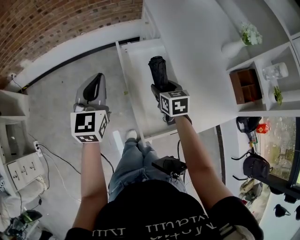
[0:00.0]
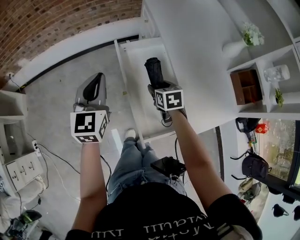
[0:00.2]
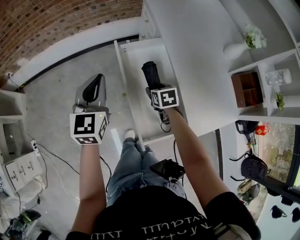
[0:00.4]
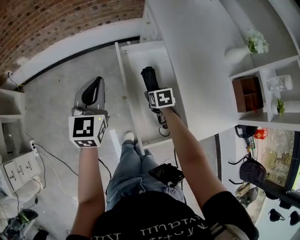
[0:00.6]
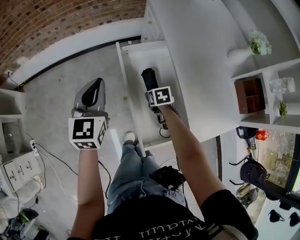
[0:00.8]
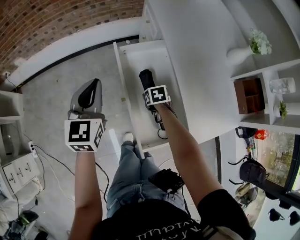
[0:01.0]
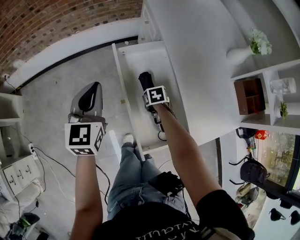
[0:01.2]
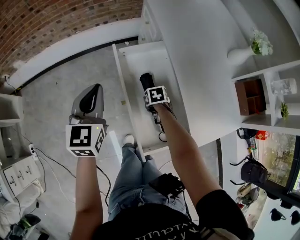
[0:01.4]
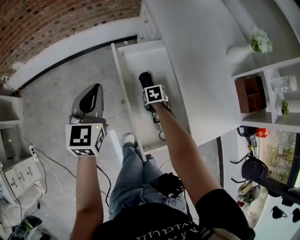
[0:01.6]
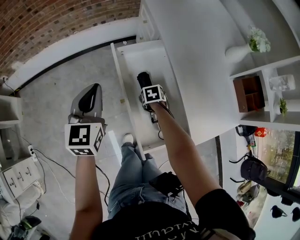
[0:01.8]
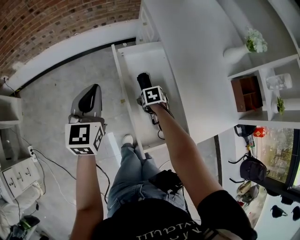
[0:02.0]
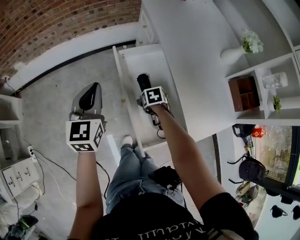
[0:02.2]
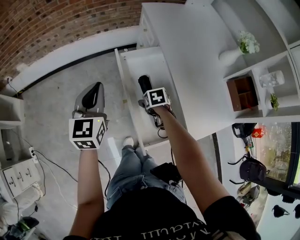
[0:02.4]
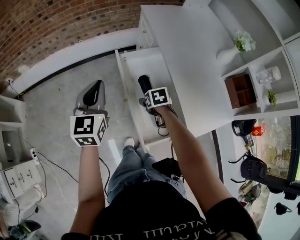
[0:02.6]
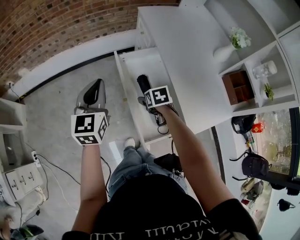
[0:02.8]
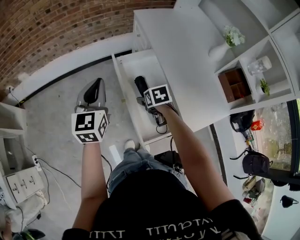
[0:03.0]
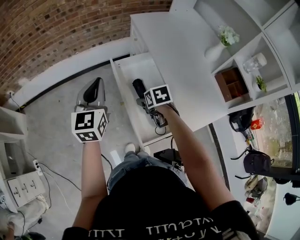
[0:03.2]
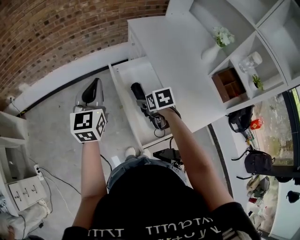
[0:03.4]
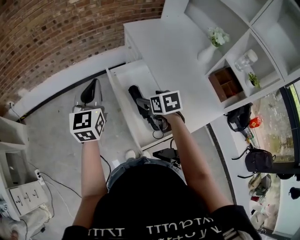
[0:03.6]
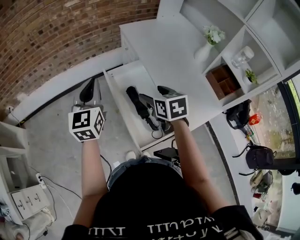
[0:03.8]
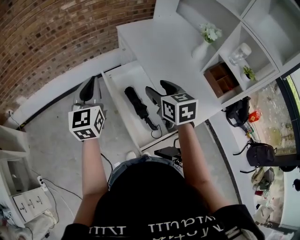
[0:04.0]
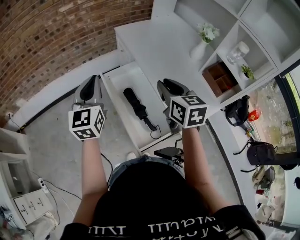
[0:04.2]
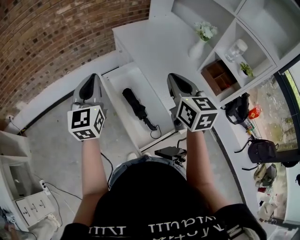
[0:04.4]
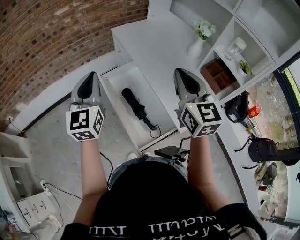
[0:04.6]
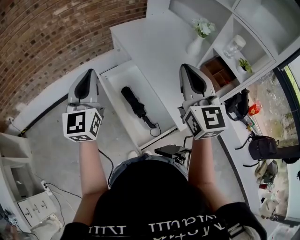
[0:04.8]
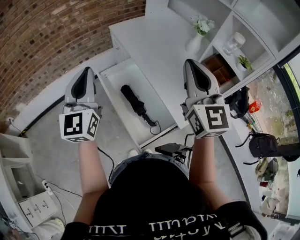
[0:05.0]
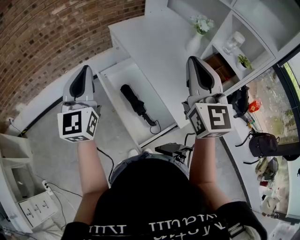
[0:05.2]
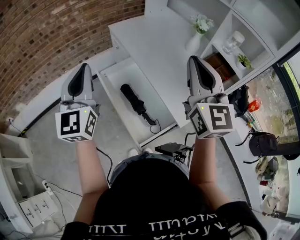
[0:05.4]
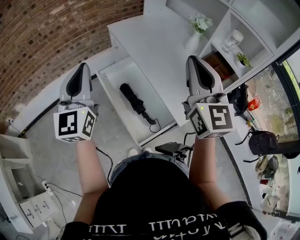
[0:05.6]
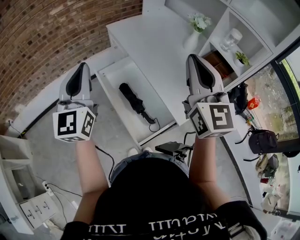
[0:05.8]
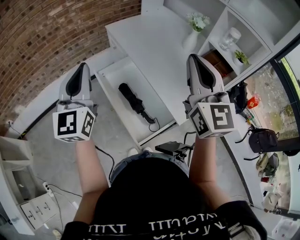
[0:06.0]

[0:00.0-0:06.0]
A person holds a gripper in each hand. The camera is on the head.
0:00.0 to 0:01.6: The right gripper shifts some 20 cm downward, and points its fingers approximately 30 degrees further downward. The left gripper moves downward, approximately 5 cm.
0:01.6 to 0:03.0: The left gripper is displaced upward by some 5 cm; the right gripper heads upward, covering about 15 cm, and opens up.
0:03.0 to 0:04.4: The right gripper is displaced upward by about 30 cm, tips its fingers upward by about 50 degrees, and closes up. The left gripper travels upward and to the right by roughly 10 cm.
0:04.4 to 0:06.0: The right gripper shifts approximately 15 cm upward and backward, and swivels about 30 degrees. Meanwhile the left gripper travels upward by about 5 cm.

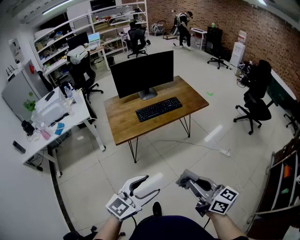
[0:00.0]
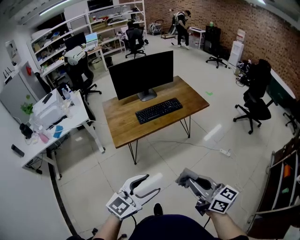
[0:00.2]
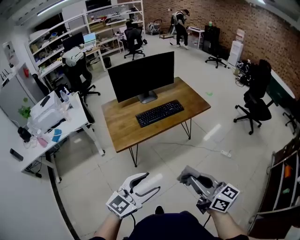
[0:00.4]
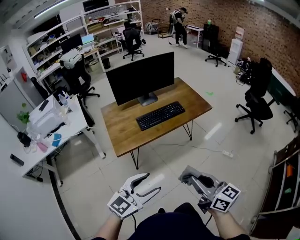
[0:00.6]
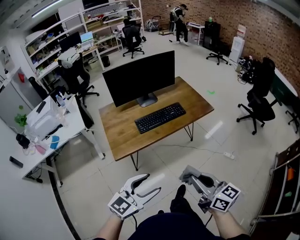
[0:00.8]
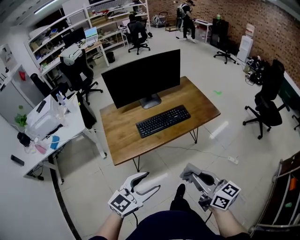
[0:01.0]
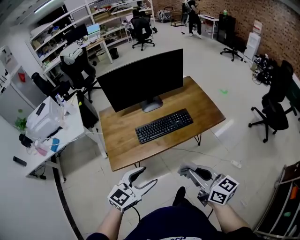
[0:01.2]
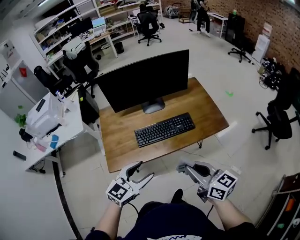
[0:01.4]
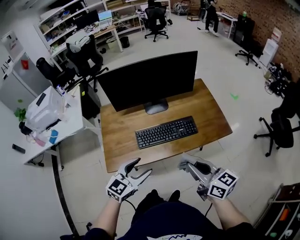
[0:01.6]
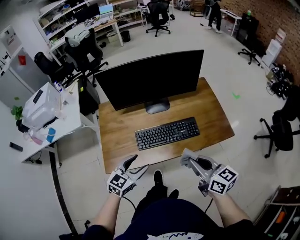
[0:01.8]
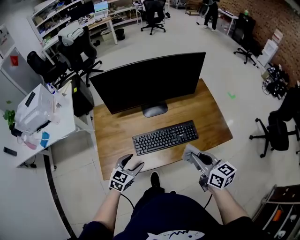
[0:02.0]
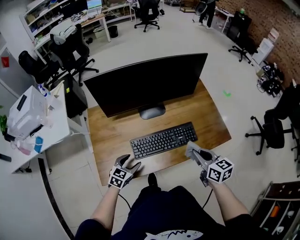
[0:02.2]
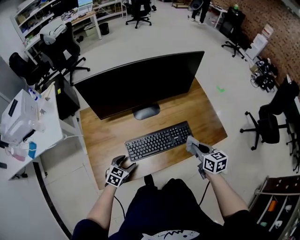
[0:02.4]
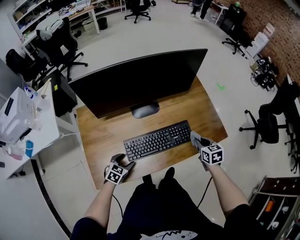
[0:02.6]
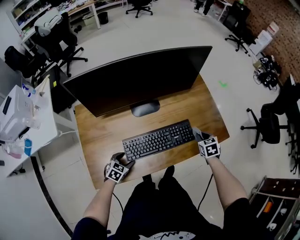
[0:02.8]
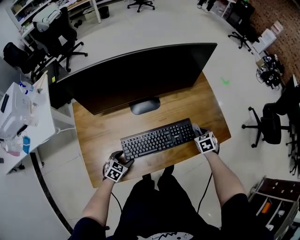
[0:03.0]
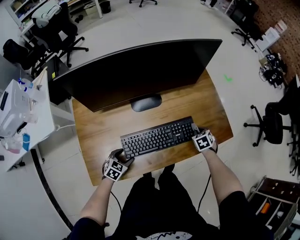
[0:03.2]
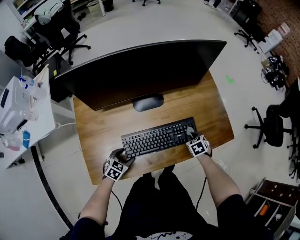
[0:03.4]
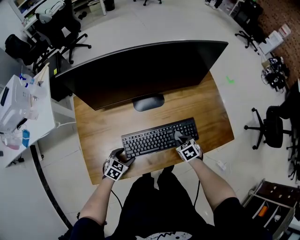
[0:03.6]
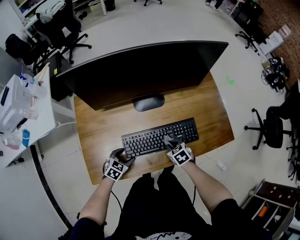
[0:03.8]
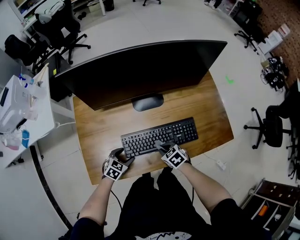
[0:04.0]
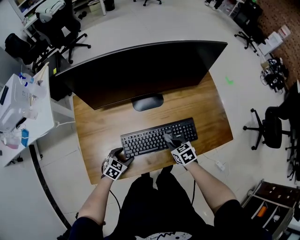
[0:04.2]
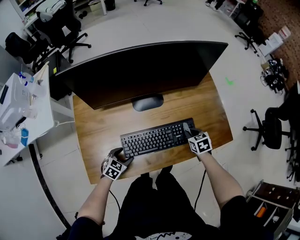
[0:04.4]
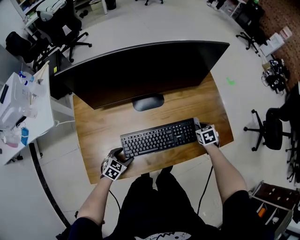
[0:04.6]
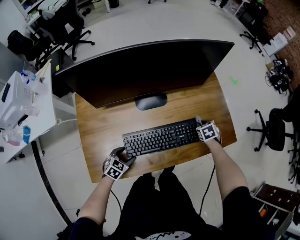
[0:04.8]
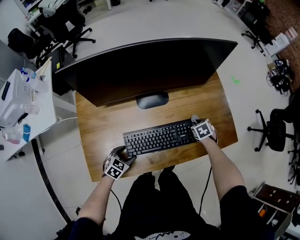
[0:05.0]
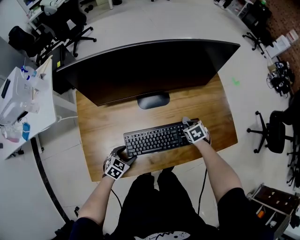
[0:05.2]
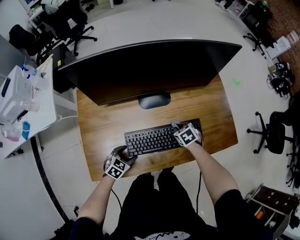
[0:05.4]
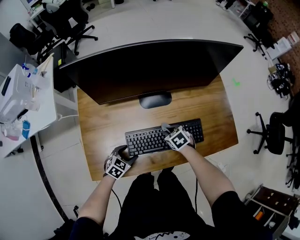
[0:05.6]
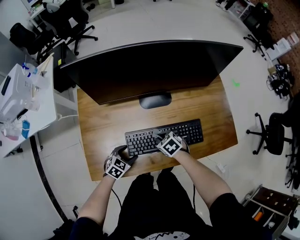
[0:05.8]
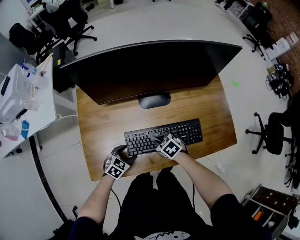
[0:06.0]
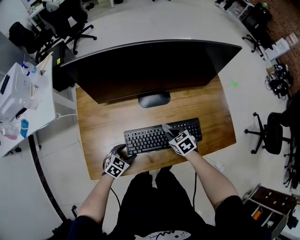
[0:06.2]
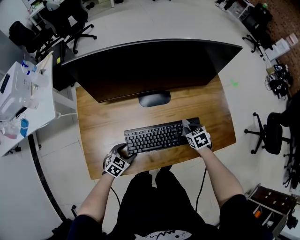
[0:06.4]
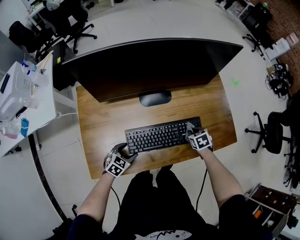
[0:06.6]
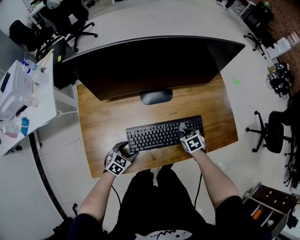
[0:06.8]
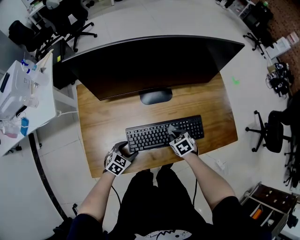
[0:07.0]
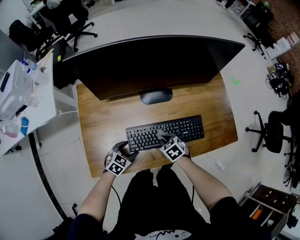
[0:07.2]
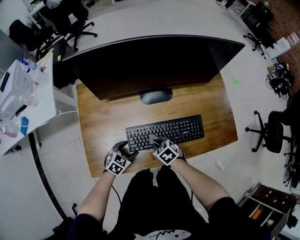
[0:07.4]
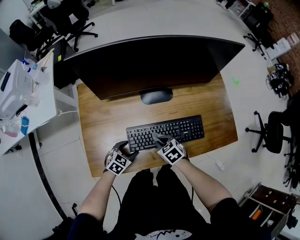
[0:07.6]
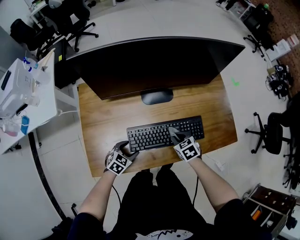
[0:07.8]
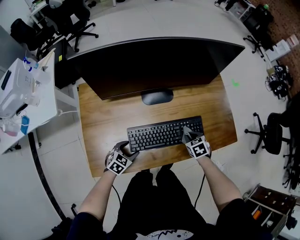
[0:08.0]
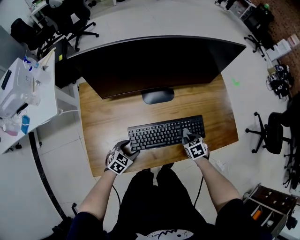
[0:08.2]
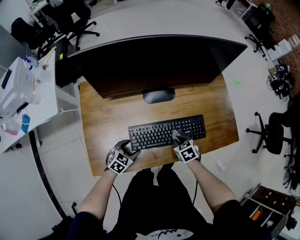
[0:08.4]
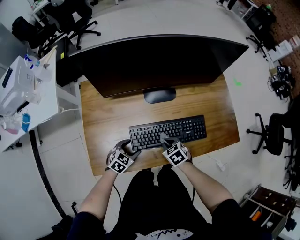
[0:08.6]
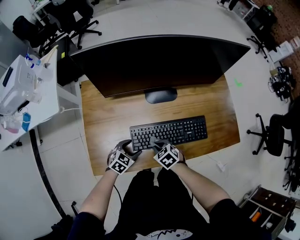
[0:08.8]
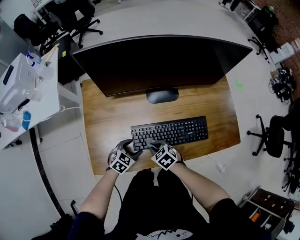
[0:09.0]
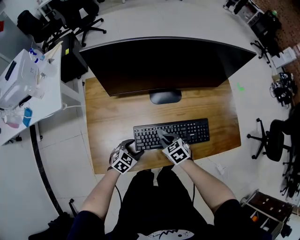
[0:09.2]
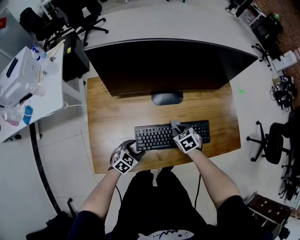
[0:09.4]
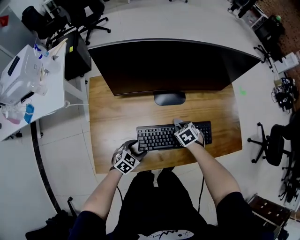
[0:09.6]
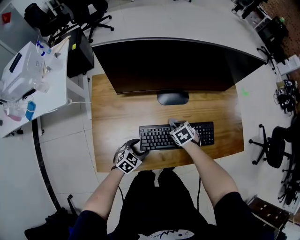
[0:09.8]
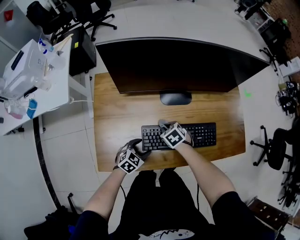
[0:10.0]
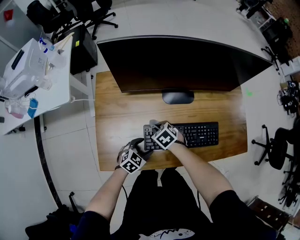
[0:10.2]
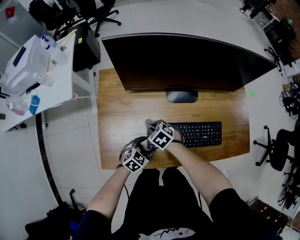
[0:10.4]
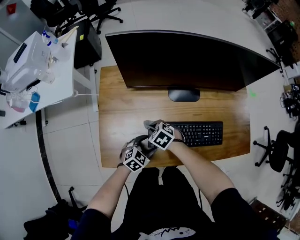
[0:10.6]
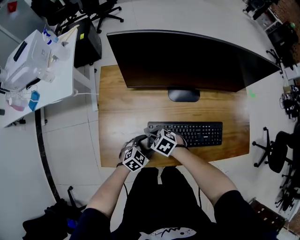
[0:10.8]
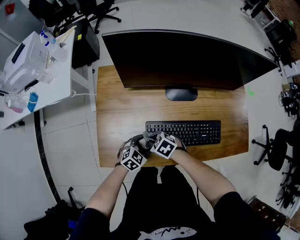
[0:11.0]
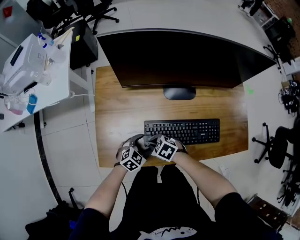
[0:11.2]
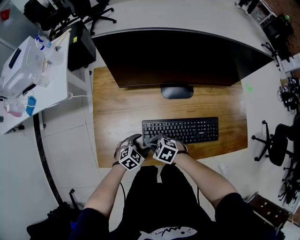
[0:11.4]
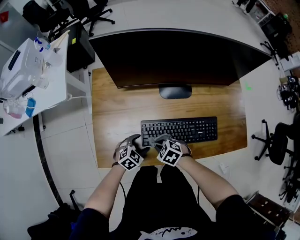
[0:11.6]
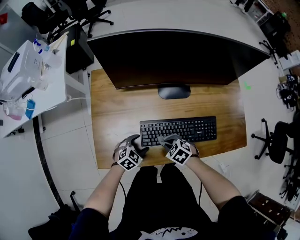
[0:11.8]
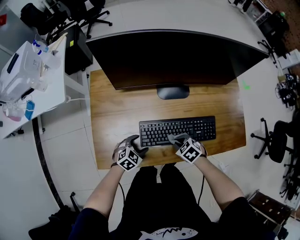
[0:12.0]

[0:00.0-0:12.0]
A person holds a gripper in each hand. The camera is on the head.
0:00.0 to 0:01.6: Both grippers are carried forward, about 50 cm. The left gripper swivels roughly 20 degrees.
0:01.6 to 0:03.0: The left gripper moves downward, about 30 cm, and angles its fingers downward, by approximately 30 degrees; the right gripper shifts by about 50 cm, and angles its fingers downward, by approximately 50 degrees.
0:04.4 to 0:06.0: The right gripper shifts by about 20 cm, and turns by approximately 30 degrees.
0:06.0 to 0:07.6: The right gripper reaches approximately 20 cm to the right, then returns.
0:07.6 to 0:09.0: The right gripper moves roughly 15 cm to the right and comes back.
0:09.0 to 0:10.4: The right gripper goes some 10 cm forward and to the left.
0:10.4 to 0:12.0: The right gripper moves roughly 20 cm.

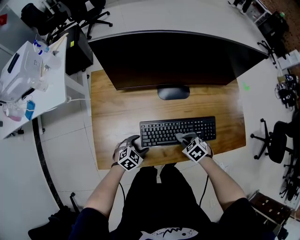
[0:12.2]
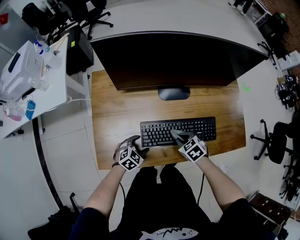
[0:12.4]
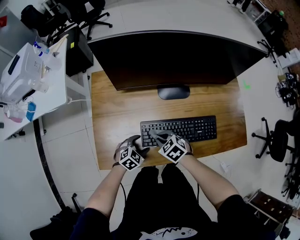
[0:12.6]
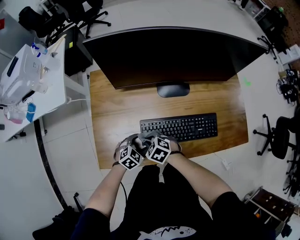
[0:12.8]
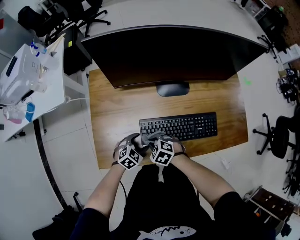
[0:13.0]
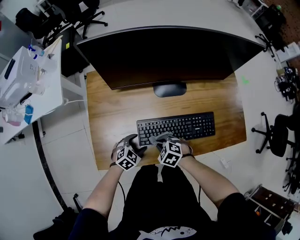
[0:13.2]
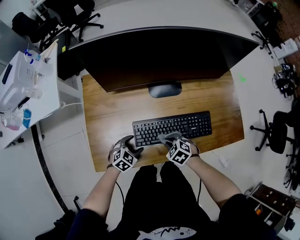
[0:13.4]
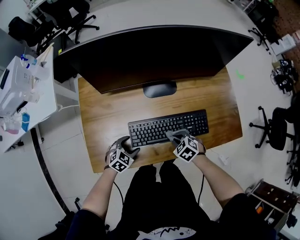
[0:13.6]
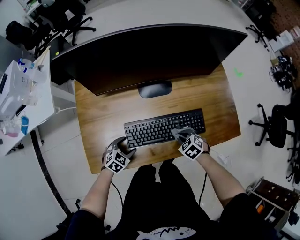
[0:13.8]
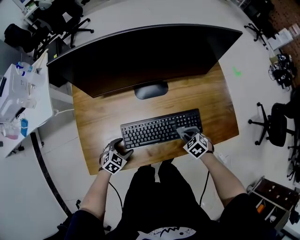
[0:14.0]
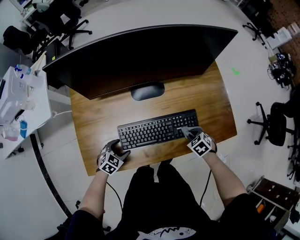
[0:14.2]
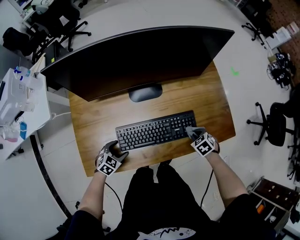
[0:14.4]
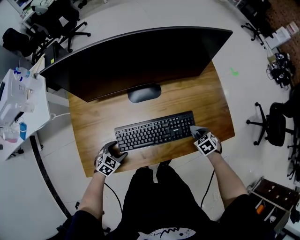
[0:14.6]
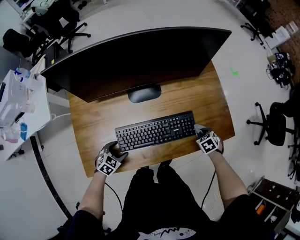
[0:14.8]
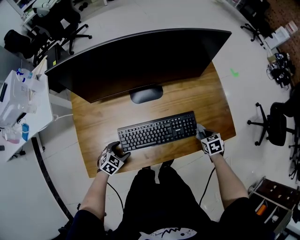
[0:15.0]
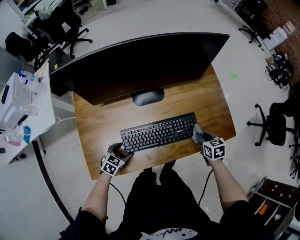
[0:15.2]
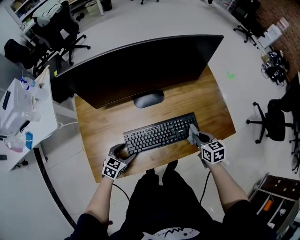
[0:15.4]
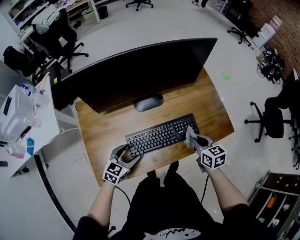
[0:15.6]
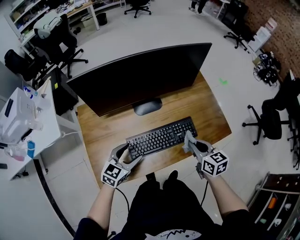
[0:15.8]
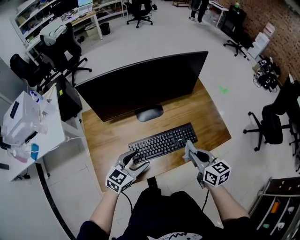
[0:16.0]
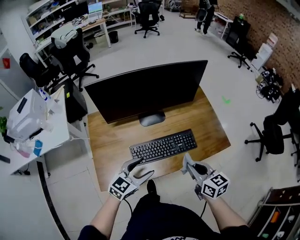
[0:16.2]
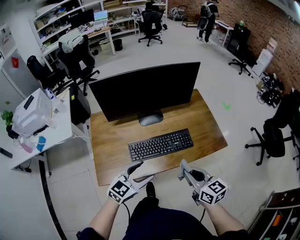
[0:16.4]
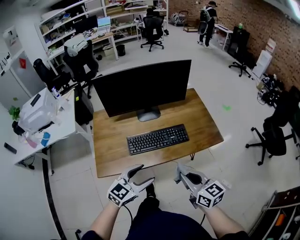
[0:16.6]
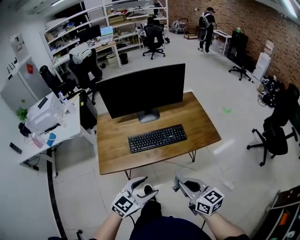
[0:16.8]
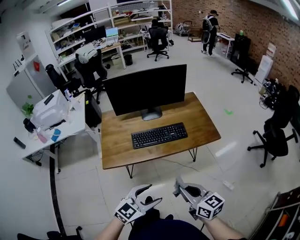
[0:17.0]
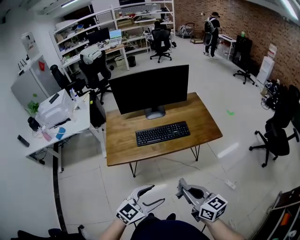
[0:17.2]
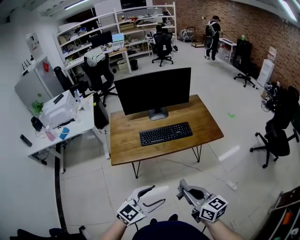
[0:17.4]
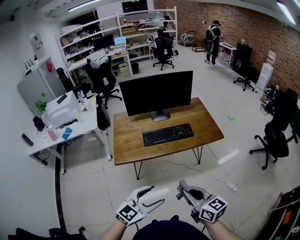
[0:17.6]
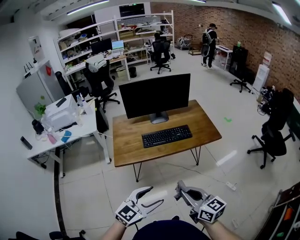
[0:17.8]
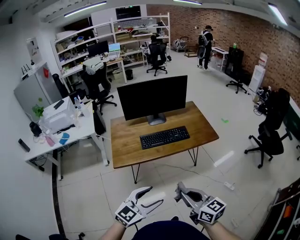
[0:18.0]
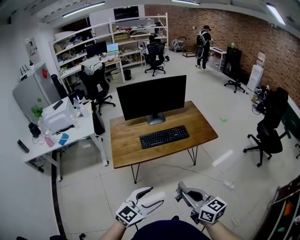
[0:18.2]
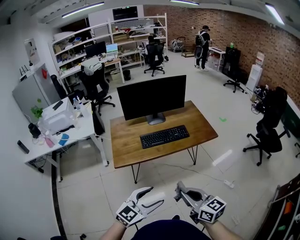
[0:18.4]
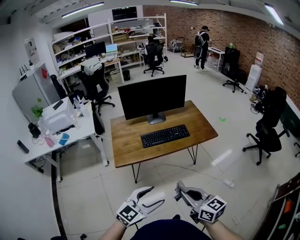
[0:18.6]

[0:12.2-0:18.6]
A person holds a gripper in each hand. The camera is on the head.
0:13.8 to 0:15.4: The right gripper moves upward and to the right, roughly 15 cm, and changes its angle by about 50 degrees. Meanwhile the left gripper shifts approximately 5 cm upward.
0:15.4 to 0:17.0: The two grippers travel together, backward, approximately 40 cm. Both grippers travel together upward, roughly 25 cm. The right gripper tilts its fingers about 30 degrees upward, while the left gripper changes its angle by some 30 degrees.
0:17.0 to 0:18.6: The left gripper travels backward, to the left and upward by approximately 15 cm. Meanwhile the right gripper moves backward and to the left, approximately 15 cm.
